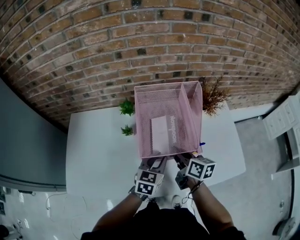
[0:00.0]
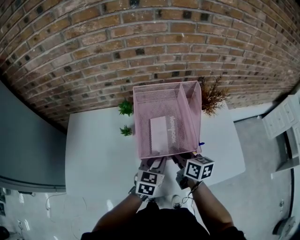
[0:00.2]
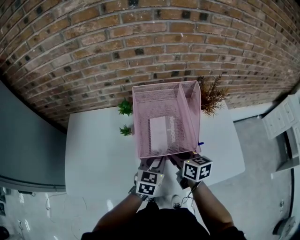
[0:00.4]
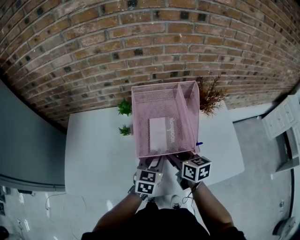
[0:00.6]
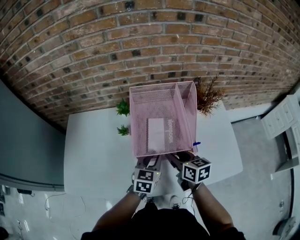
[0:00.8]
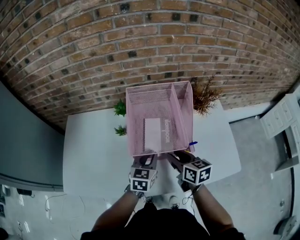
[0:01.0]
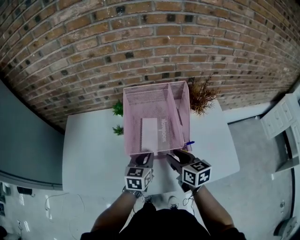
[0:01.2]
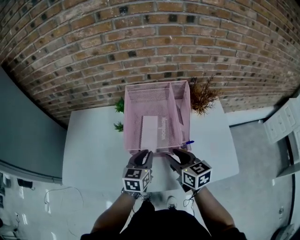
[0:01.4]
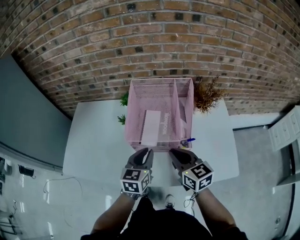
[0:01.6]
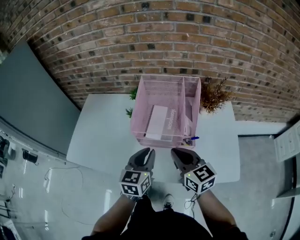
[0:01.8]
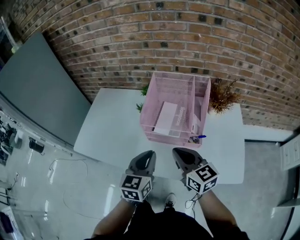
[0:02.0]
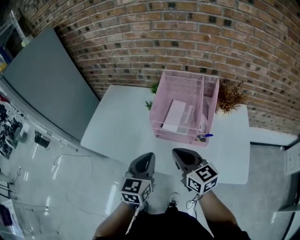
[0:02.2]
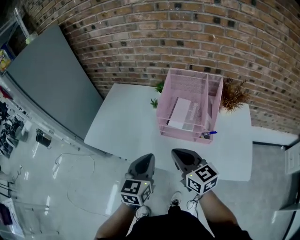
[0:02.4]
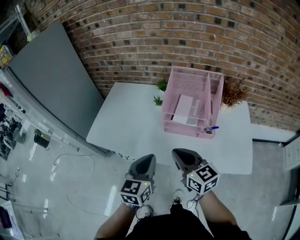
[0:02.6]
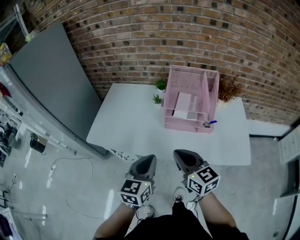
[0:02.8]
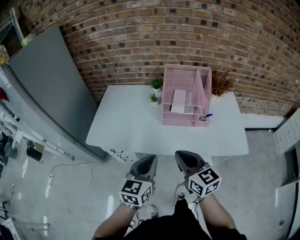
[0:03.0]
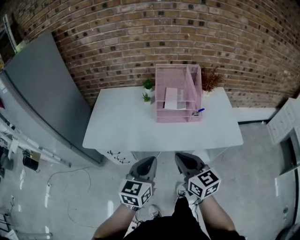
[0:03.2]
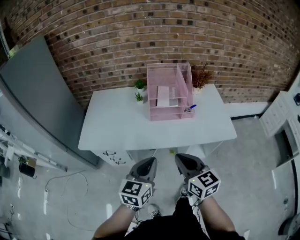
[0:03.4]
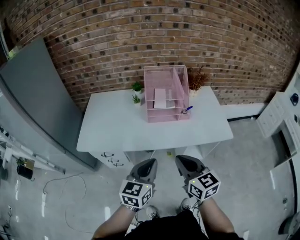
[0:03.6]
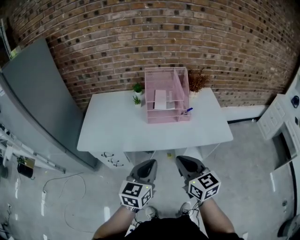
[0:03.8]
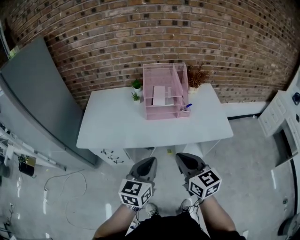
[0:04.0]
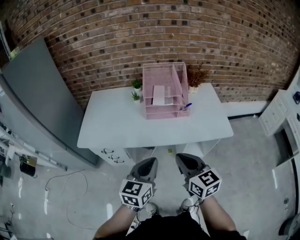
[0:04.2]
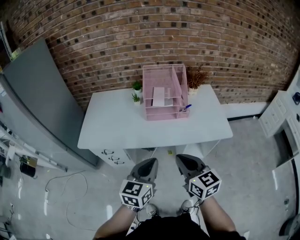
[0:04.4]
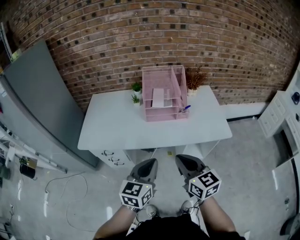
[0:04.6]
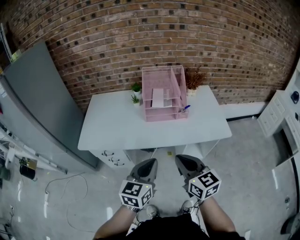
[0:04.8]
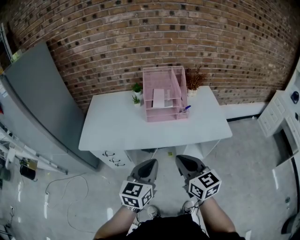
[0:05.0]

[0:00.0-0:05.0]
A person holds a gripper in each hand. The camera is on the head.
0:00.0 to 0:01.6: The right gripper is displaced backward and upward by about 10 cm, turns by approximately 40 degrees, and opens and closes again, while the left gripper ends up roughly 5 cm from where it was.
0:01.6 to 0:03.4: Both grippers travel together backward and to the left, some 30 cm.
0:03.4 to 0:05.0: The grippers make only small movements.

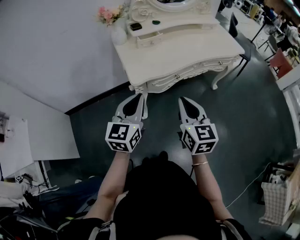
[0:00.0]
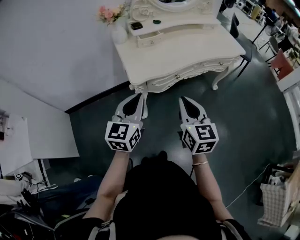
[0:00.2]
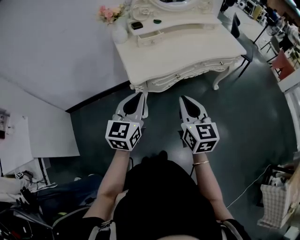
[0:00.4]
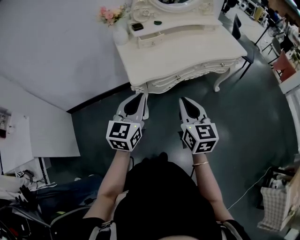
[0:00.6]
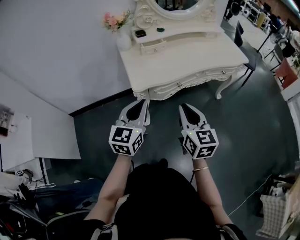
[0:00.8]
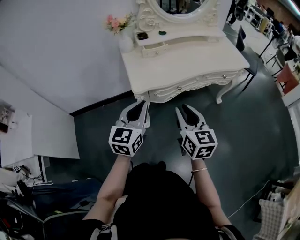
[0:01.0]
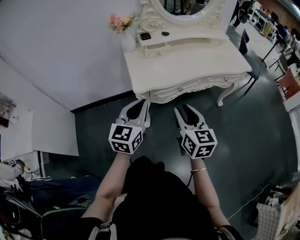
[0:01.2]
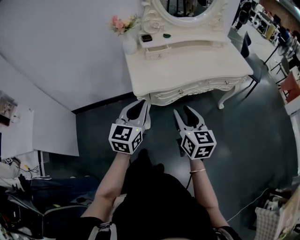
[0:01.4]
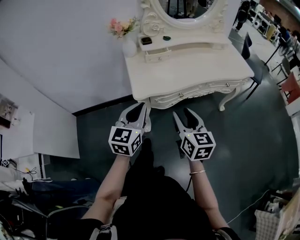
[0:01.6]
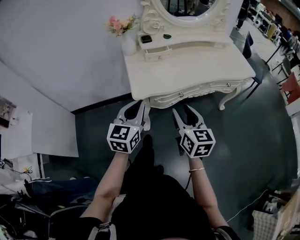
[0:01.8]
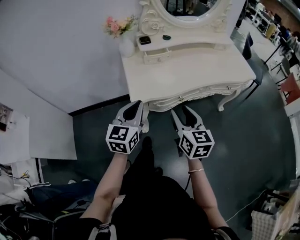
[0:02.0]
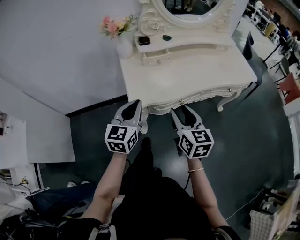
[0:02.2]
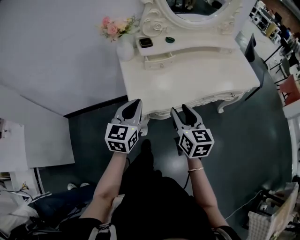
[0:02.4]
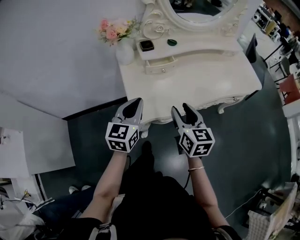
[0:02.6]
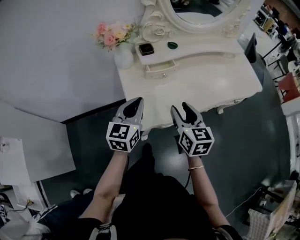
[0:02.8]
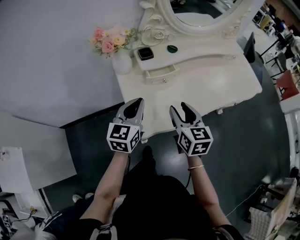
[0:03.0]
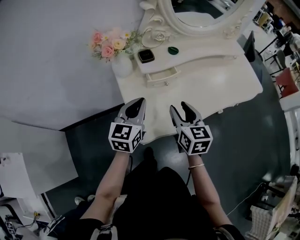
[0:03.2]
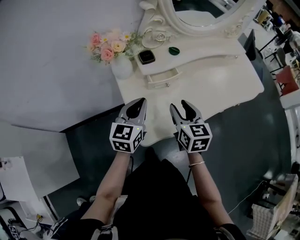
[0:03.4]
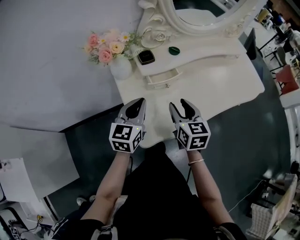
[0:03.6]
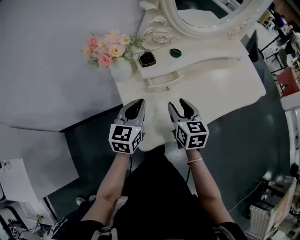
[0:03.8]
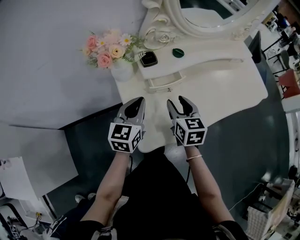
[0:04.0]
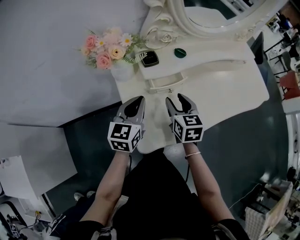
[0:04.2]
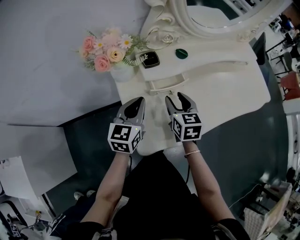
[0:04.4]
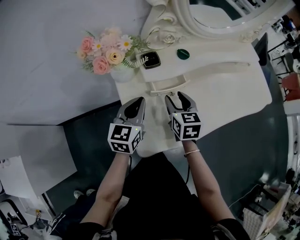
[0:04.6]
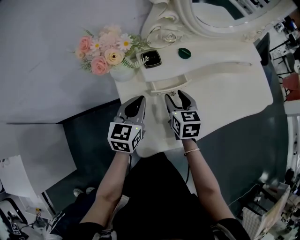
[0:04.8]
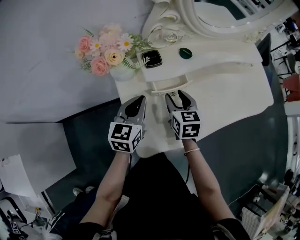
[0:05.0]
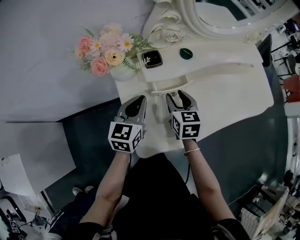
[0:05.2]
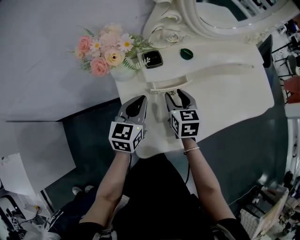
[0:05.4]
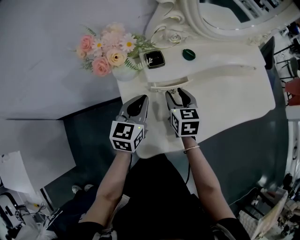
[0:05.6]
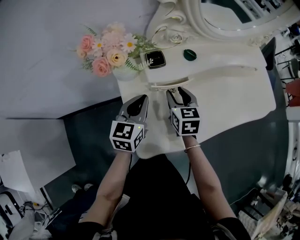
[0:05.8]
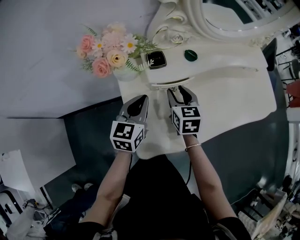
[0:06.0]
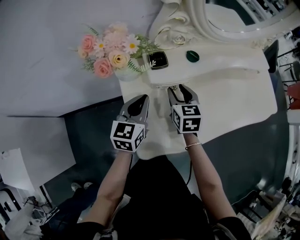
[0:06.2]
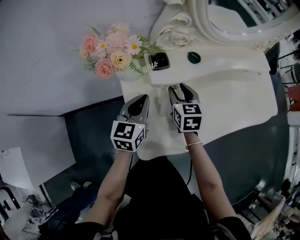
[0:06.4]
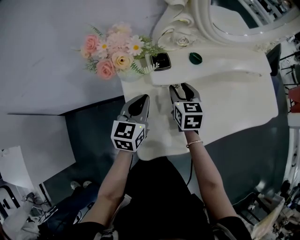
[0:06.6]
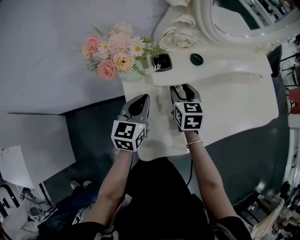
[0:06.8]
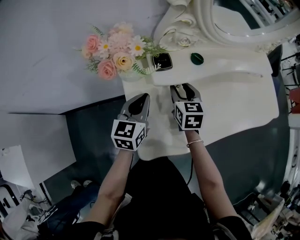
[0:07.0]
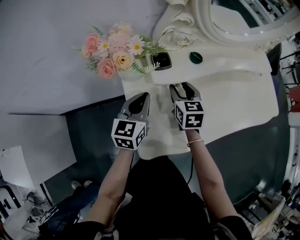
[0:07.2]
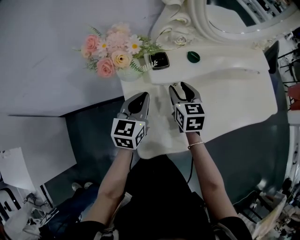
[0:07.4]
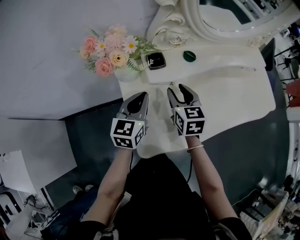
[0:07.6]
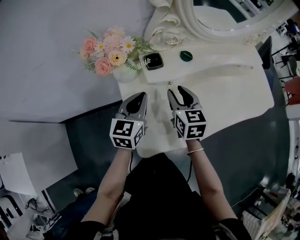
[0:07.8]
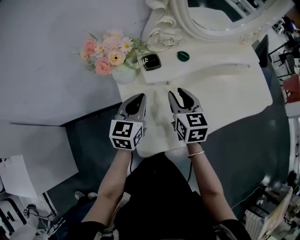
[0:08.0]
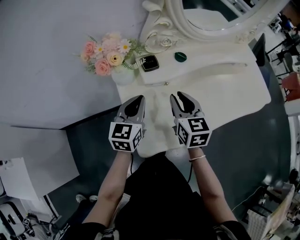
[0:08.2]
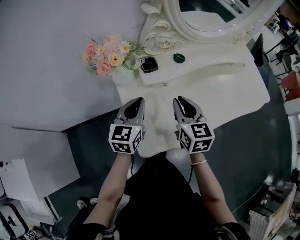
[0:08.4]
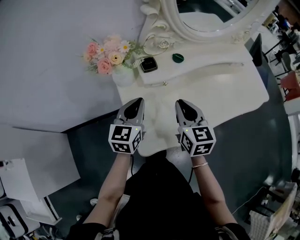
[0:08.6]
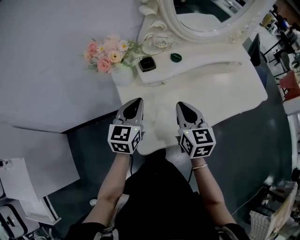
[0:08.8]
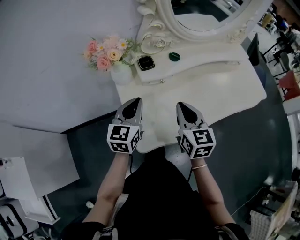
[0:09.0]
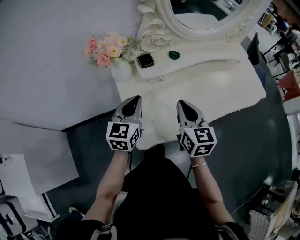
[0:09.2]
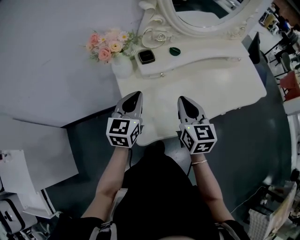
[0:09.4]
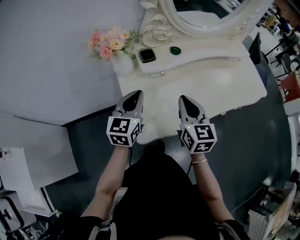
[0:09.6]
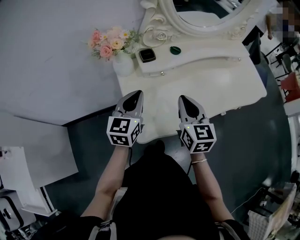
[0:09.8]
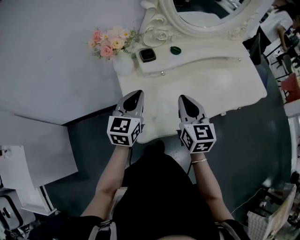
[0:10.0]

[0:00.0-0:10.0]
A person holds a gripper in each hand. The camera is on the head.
0:00.0 to 0:01.4: The right gripper opens its fingers.
0:01.4 to 0:02.8: The two grippers go approximately 25 cm forward.
0:02.8 to 0:04.2: The right gripper moves forward and downward, some 15 cm. The left gripper travels forward by roughly 10 cm.
0:04.2 to 0:05.8: The right gripper goes roughly 5 cm forward.
0:05.8 to 0:07.2: The grippers move only a little.
0:07.2 to 0:08.6: The left gripper ends up roughly 5 cm from where it was, while the right gripper is displaced backward and upward by some 15 cm, and closes.
0:08.6 to 0:10.0: The right gripper shifts by about 5 cm.

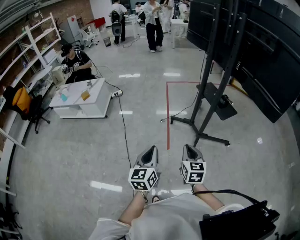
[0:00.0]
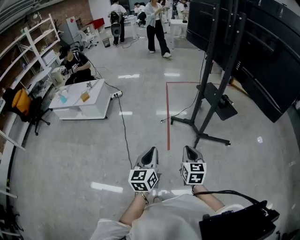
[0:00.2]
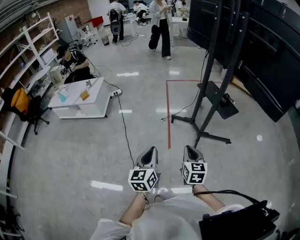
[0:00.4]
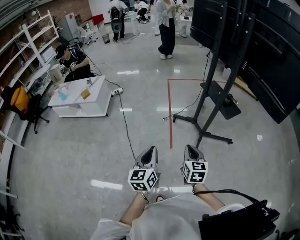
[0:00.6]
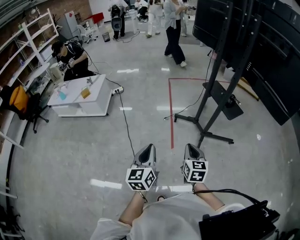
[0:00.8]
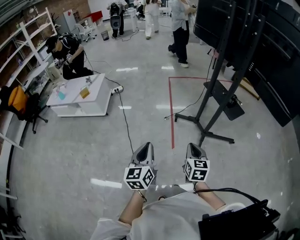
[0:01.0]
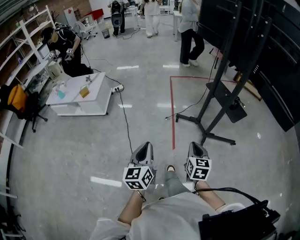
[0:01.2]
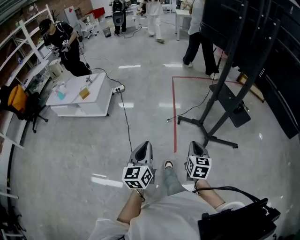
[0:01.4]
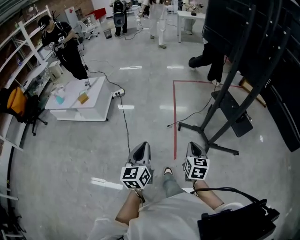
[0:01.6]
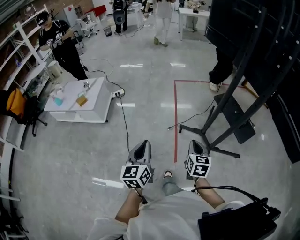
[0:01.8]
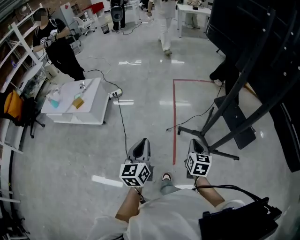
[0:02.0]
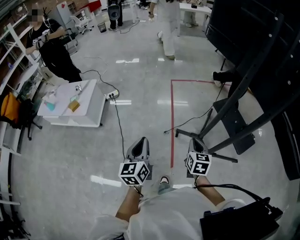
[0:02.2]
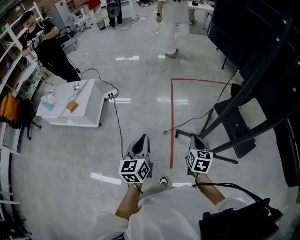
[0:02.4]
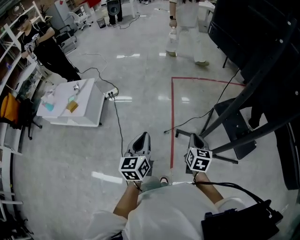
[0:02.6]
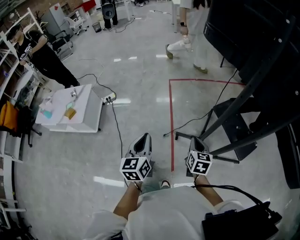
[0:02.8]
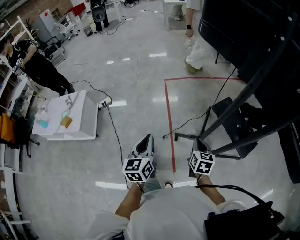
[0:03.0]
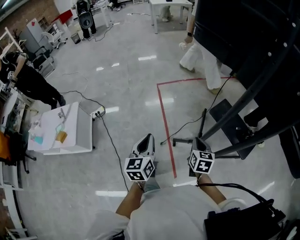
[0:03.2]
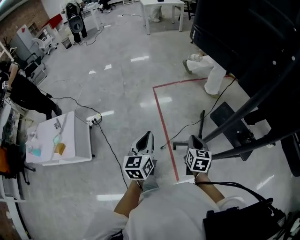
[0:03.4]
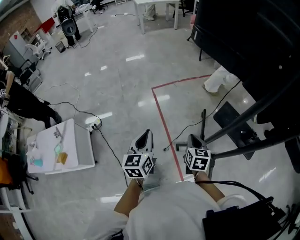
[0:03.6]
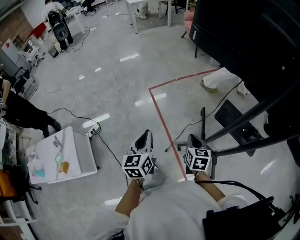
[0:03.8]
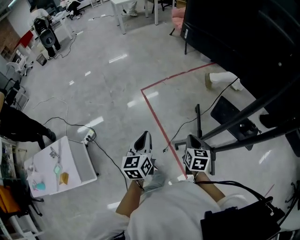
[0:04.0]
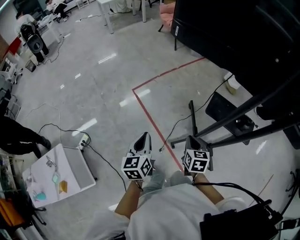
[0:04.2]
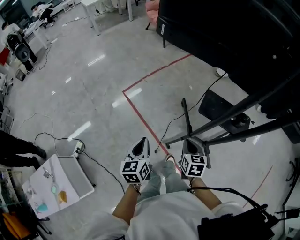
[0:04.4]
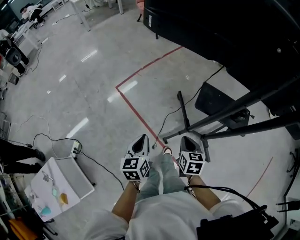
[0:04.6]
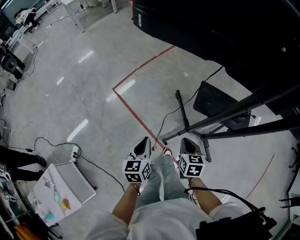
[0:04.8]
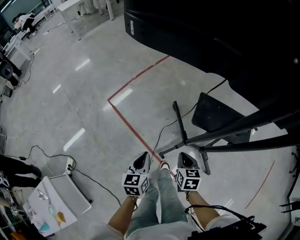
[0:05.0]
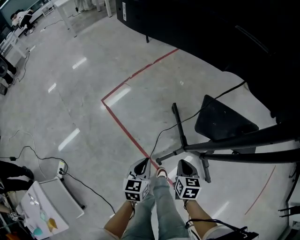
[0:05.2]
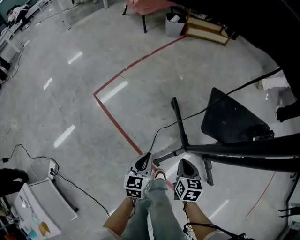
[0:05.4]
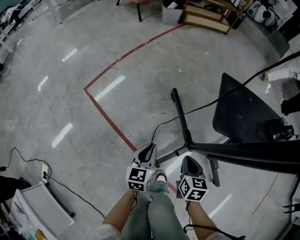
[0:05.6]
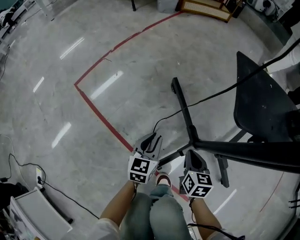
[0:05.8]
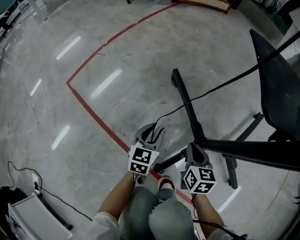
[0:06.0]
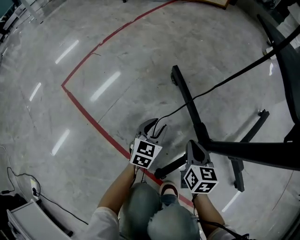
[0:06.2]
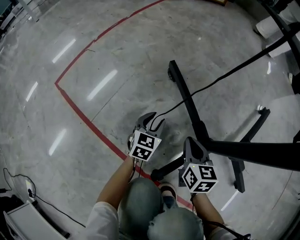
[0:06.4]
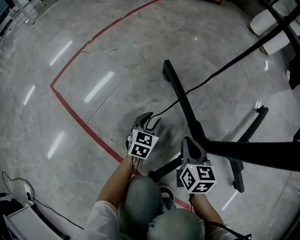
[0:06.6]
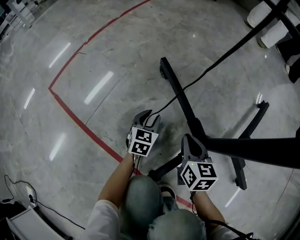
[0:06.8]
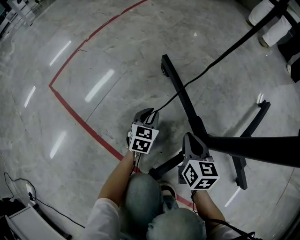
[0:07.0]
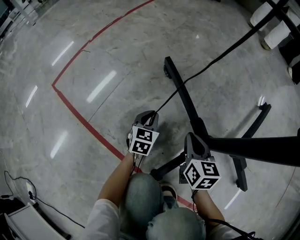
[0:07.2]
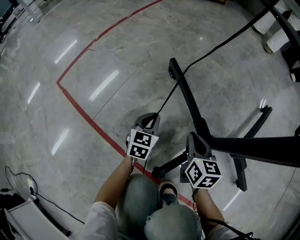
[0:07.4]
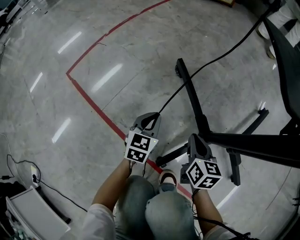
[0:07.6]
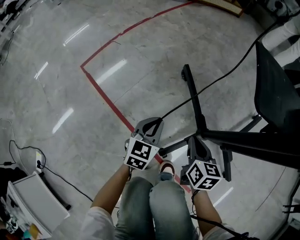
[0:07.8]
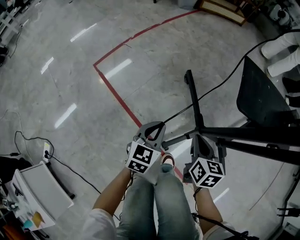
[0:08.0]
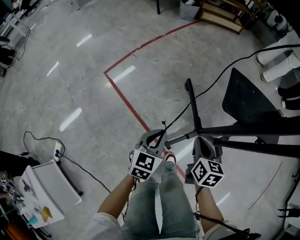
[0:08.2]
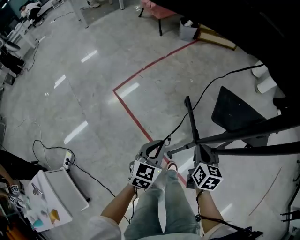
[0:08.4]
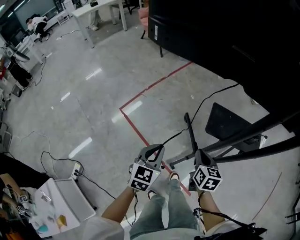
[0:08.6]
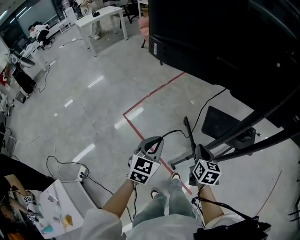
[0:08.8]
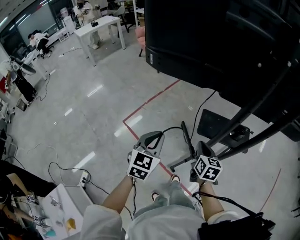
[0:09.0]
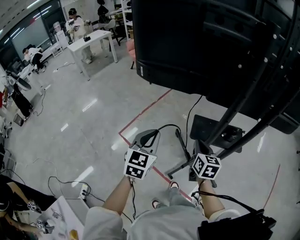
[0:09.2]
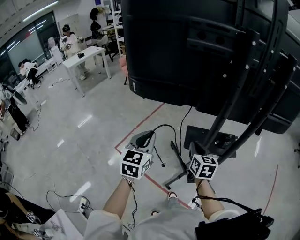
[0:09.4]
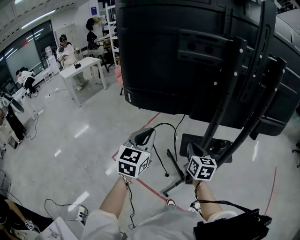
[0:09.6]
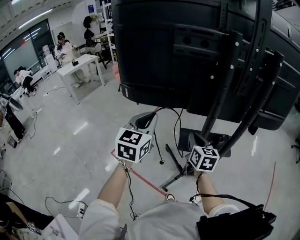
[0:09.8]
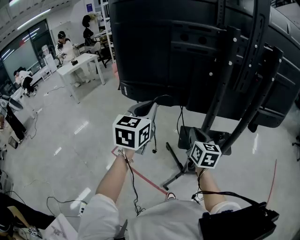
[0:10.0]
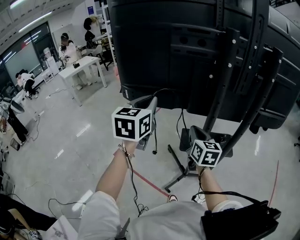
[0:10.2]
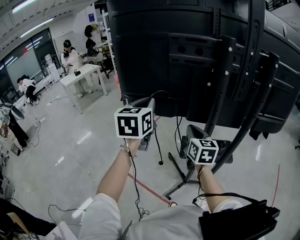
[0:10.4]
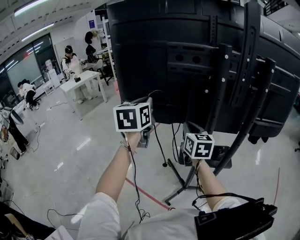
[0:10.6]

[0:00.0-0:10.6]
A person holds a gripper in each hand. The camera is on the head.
0:00.0 to 0:01.6: The left gripper travels forward and to the left by approximately 25 cm, while the right gripper moves forward, some 20 cm.
0:01.6 to 0:03.0: The grippers both shift forward by some 30 cm.
0:03.0 to 0:04.6: The right gripper changes place by some 20 cm, and rotates about 30 degrees. Meanwhile the left gripper shifts by approximately 35 cm, and turns by roughly 40 degrees.
0:04.6 to 0:06.0: The right gripper heads downward, covering roughly 50 cm, while the left gripper travels downward and forward by about 70 cm, rotates roughly 30 degrees, and opens its fingers.
0:06.0 to 0:07.6: The left gripper moves some 15 cm downward and comes back, and closes. The right gripper travels downward and back again, about 10 cm each way.
0:07.6 to 0:09.0: Both grippers move upward, approximately 70 cm.
0:09.0 to 0:10.6: The left gripper moves upward and forward, approximately 30 cm; the right gripper goes some 25 cm upward, and rotates approximately 20 degrees.
